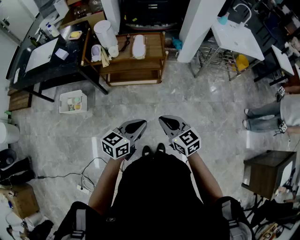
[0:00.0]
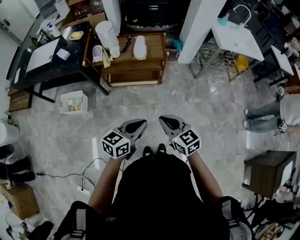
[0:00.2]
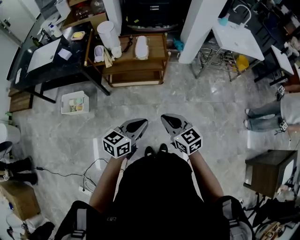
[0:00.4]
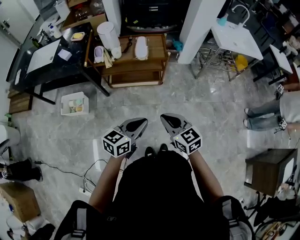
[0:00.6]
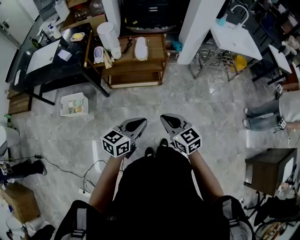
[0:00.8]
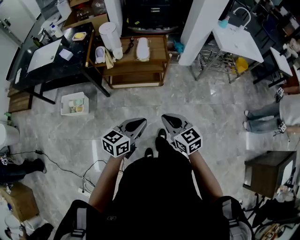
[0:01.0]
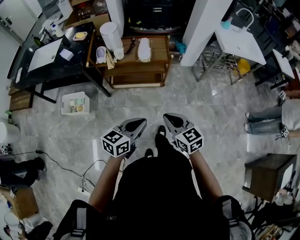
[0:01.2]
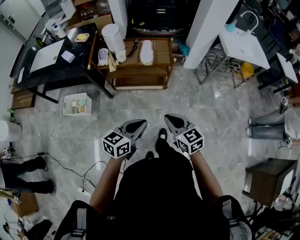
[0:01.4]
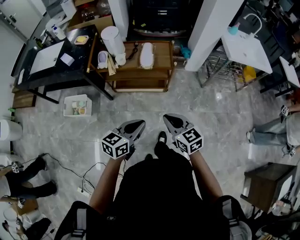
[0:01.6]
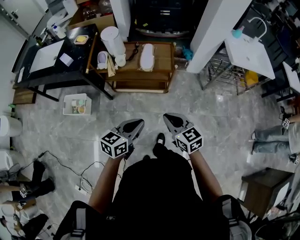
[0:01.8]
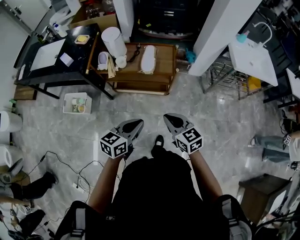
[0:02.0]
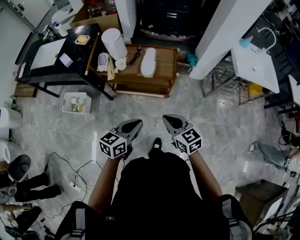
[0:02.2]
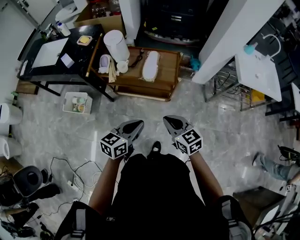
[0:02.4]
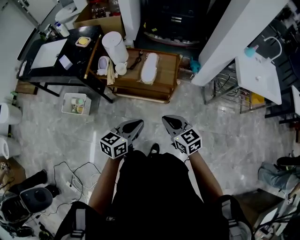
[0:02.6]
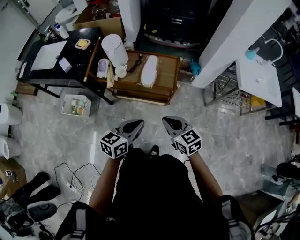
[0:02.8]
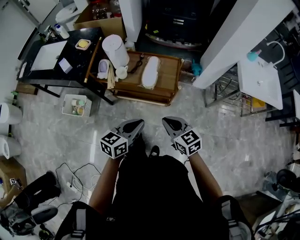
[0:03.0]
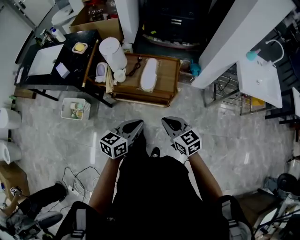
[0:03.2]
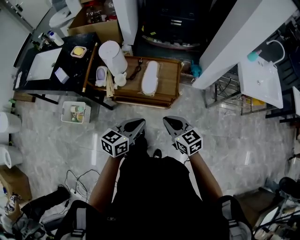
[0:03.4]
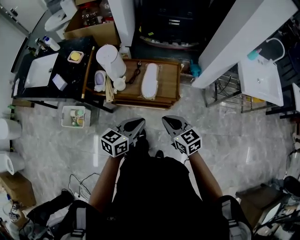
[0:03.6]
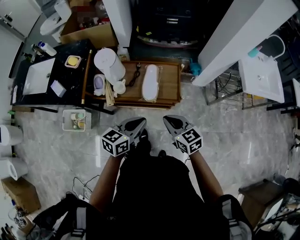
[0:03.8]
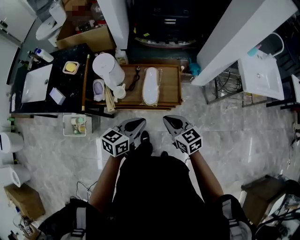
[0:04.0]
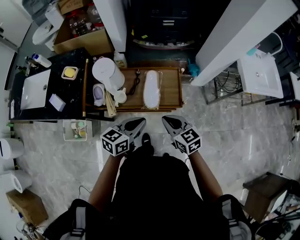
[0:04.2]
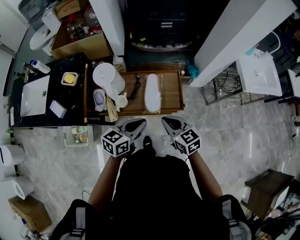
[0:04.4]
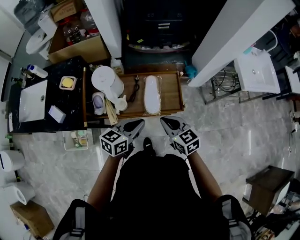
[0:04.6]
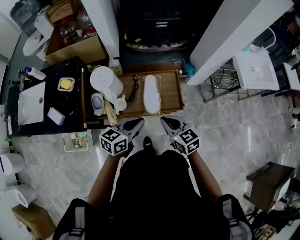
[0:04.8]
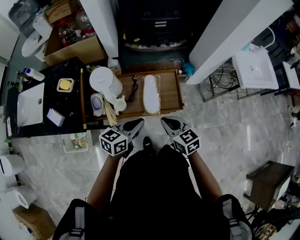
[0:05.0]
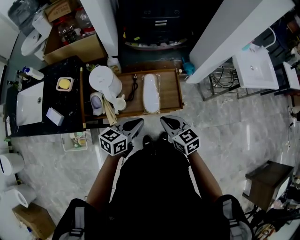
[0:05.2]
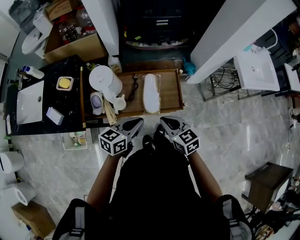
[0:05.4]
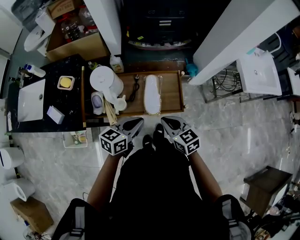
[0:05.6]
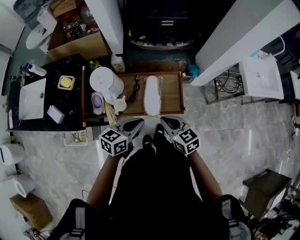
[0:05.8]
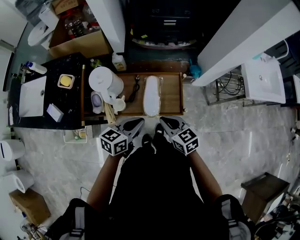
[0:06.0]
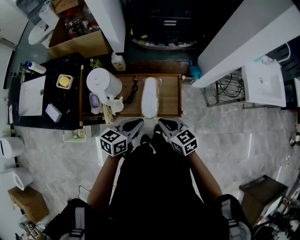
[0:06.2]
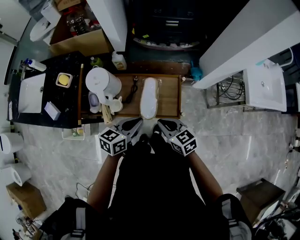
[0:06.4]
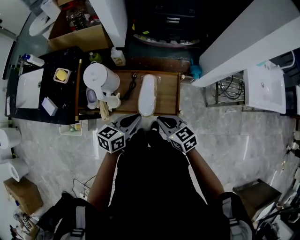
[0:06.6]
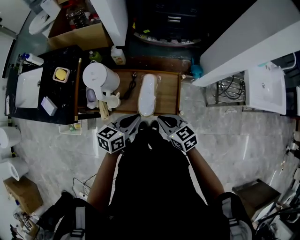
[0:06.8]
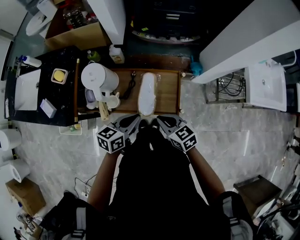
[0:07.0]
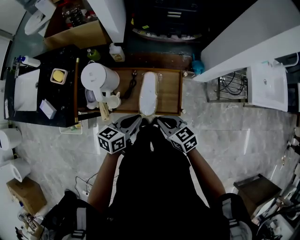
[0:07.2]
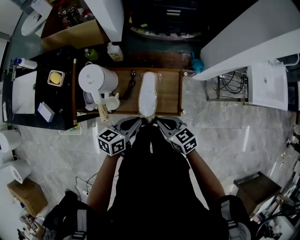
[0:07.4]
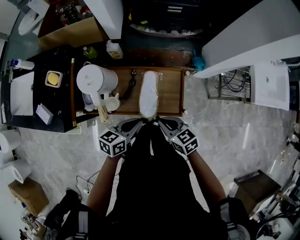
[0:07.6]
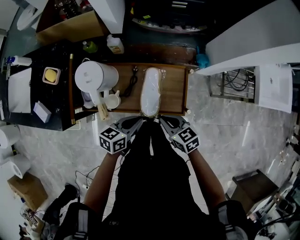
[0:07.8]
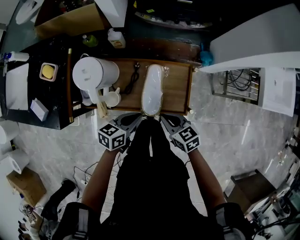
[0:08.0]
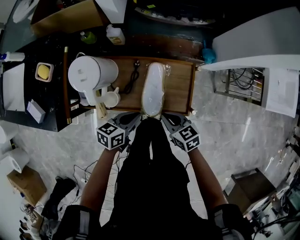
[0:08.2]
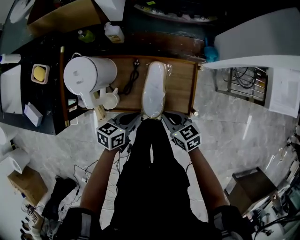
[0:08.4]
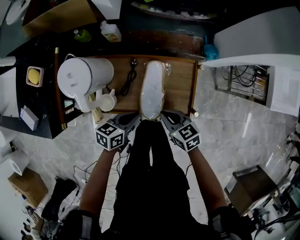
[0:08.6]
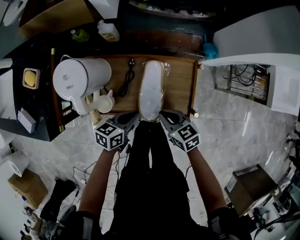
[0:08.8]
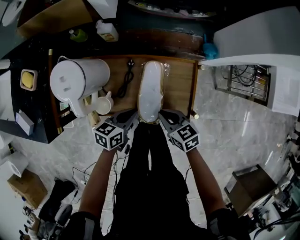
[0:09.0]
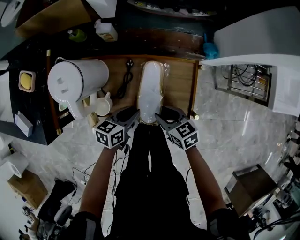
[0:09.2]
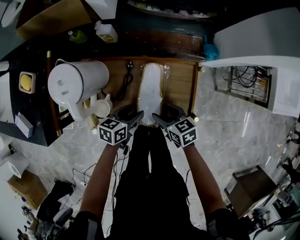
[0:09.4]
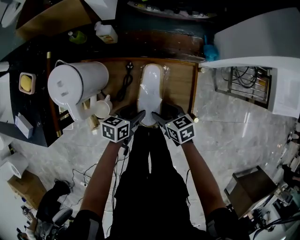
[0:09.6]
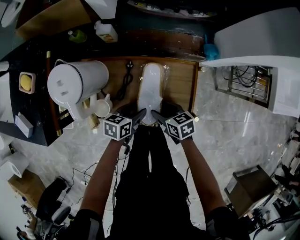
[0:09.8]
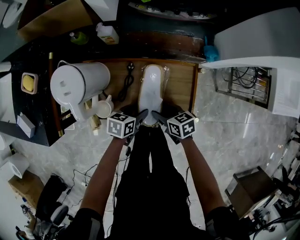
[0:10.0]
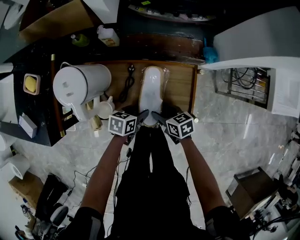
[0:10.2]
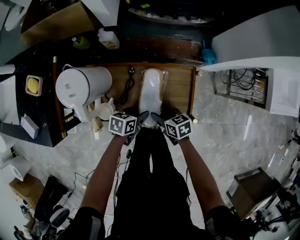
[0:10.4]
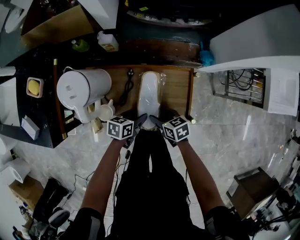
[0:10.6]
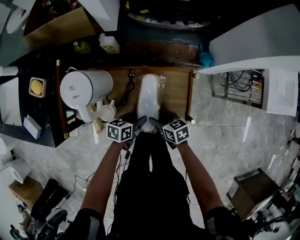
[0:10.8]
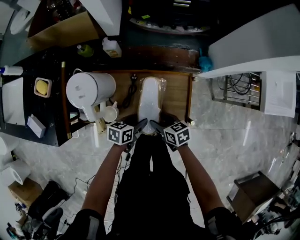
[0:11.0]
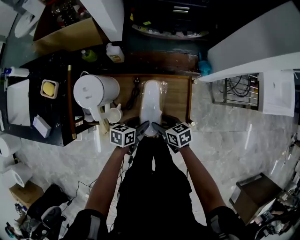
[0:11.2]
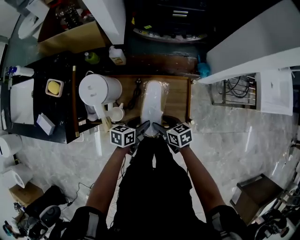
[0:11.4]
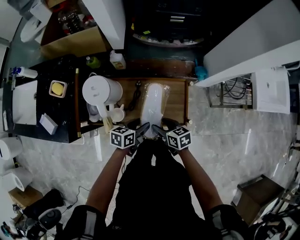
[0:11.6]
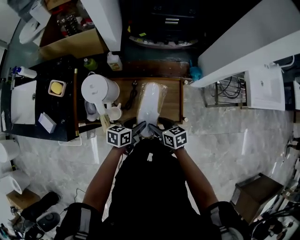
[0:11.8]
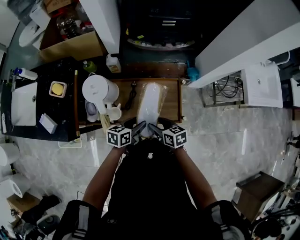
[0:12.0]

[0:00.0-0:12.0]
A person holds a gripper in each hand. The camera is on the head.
0:00.0 to 0:01.6: Both grippers move forward, roughly 10 cm.
0:01.6 to 0:03.0: Both grippers move forward, some 20 cm.
0:03.0 to 0:04.4: The left gripper goes roughly 20 cm forward. Meanwhile the right gripper is displaced forward and to the left by roughly 20 cm.
0:04.4 to 0:06.0: The right gripper changes place by approximately 5 cm; the left gripper shifts about 5 cm forward.
0:06.0 to 0:07.6: Both grippers move downward, roughly 5 cm.
0:07.6 to 0:09.0: The two grippers go roughly 15 cm downward.
0:09.0 to 0:10.4: Both grippers travel together downward, some 5 cm. The right gripper opens, while the left gripper opens.
0:10.4 to 0:12.0: The grippers both shift upward by about 15 cm.

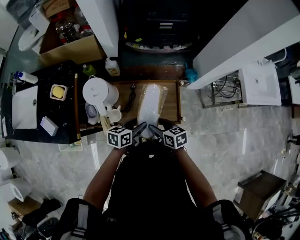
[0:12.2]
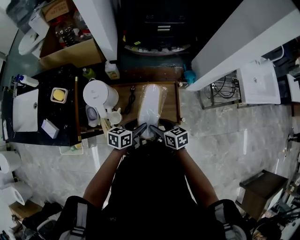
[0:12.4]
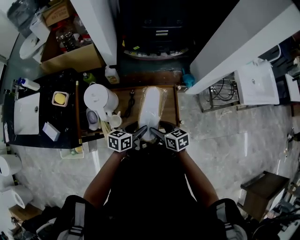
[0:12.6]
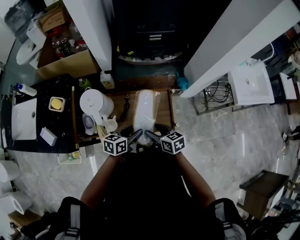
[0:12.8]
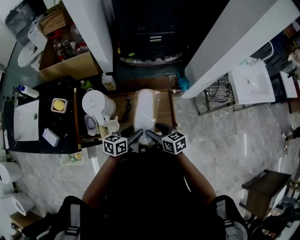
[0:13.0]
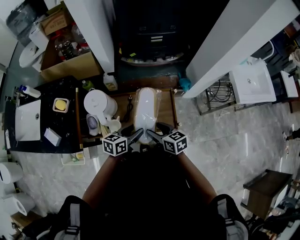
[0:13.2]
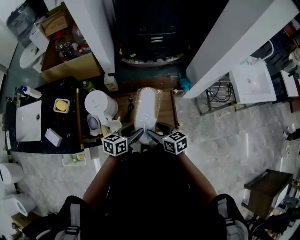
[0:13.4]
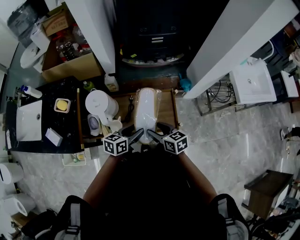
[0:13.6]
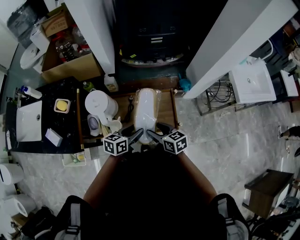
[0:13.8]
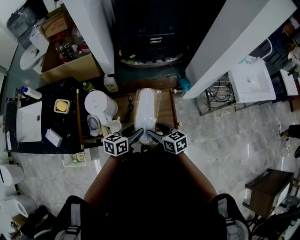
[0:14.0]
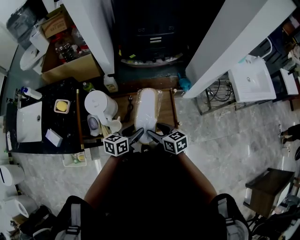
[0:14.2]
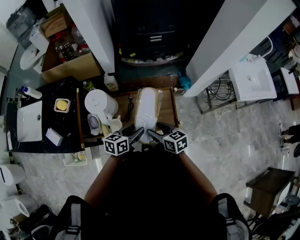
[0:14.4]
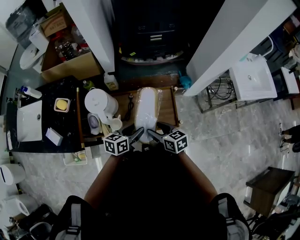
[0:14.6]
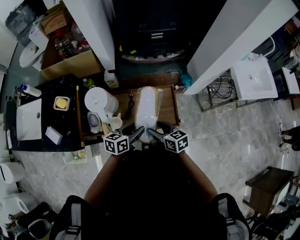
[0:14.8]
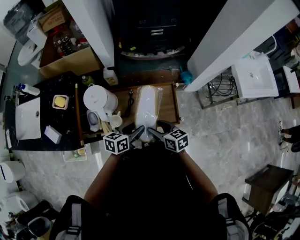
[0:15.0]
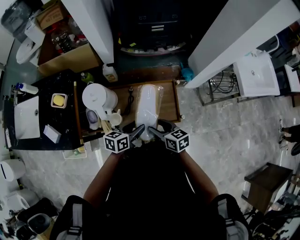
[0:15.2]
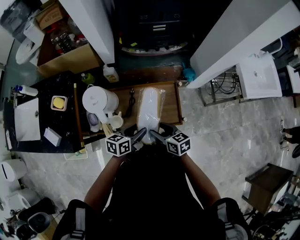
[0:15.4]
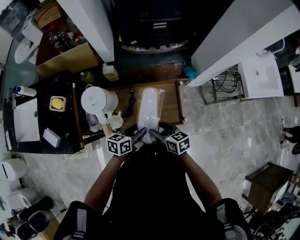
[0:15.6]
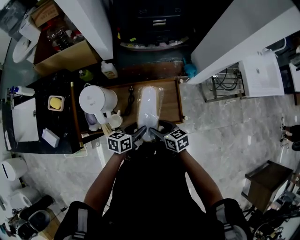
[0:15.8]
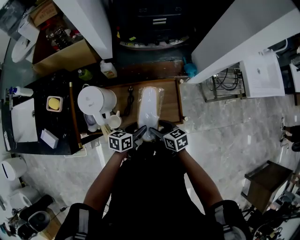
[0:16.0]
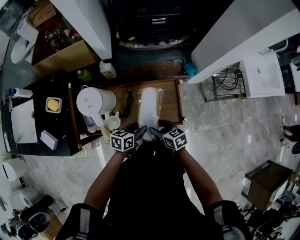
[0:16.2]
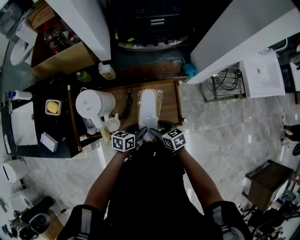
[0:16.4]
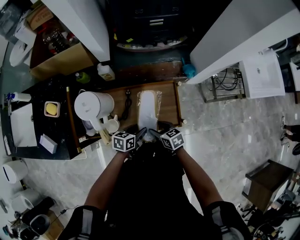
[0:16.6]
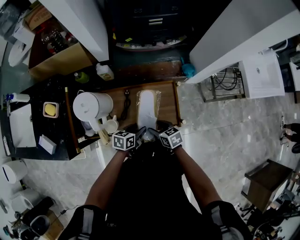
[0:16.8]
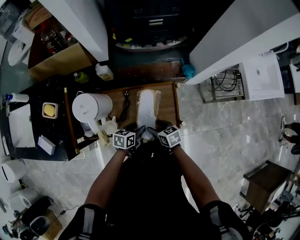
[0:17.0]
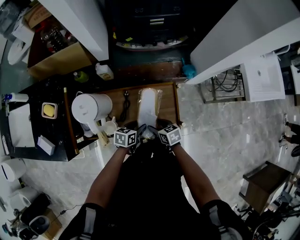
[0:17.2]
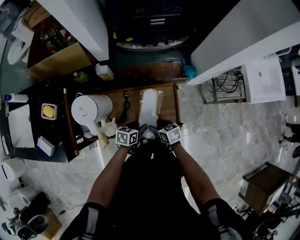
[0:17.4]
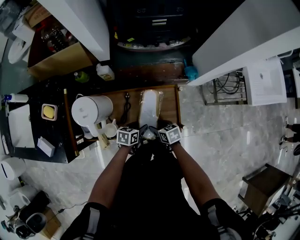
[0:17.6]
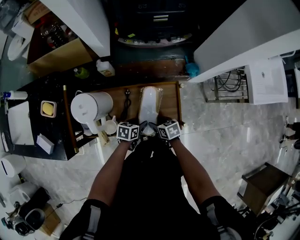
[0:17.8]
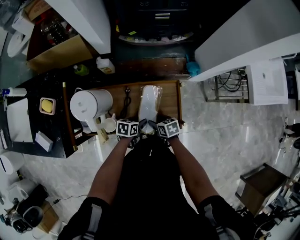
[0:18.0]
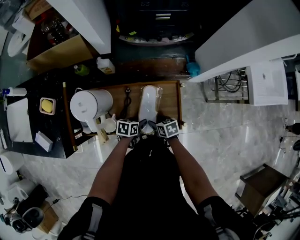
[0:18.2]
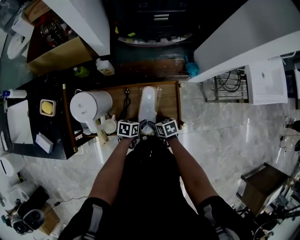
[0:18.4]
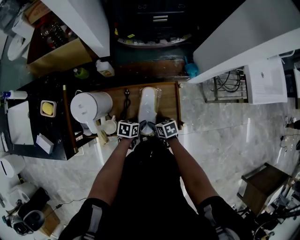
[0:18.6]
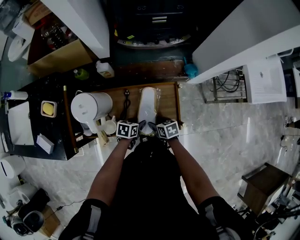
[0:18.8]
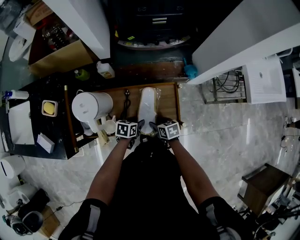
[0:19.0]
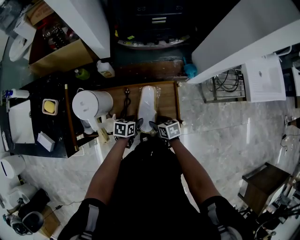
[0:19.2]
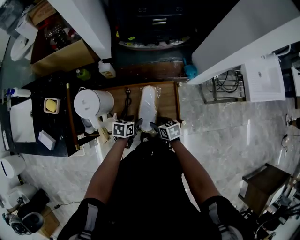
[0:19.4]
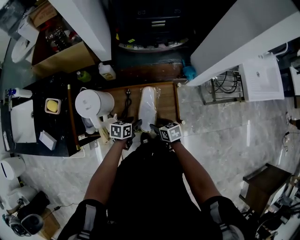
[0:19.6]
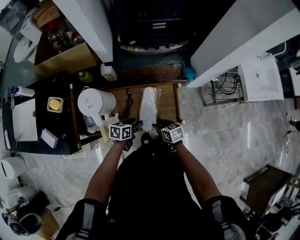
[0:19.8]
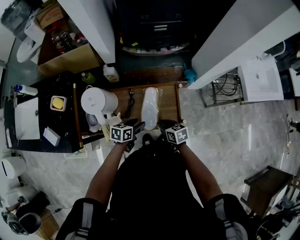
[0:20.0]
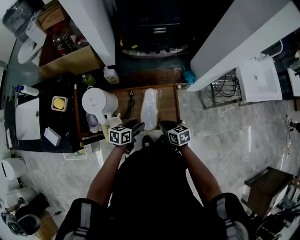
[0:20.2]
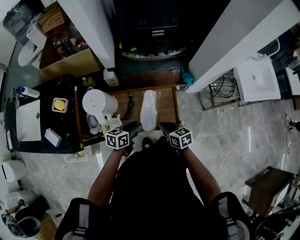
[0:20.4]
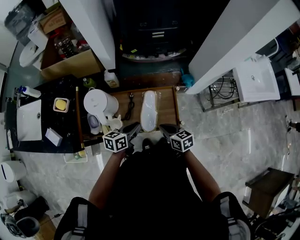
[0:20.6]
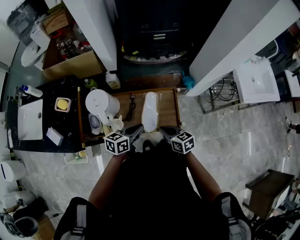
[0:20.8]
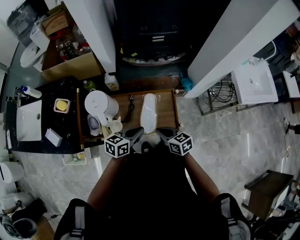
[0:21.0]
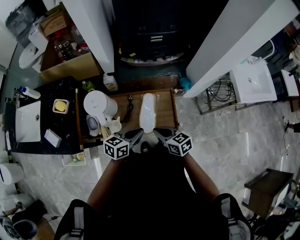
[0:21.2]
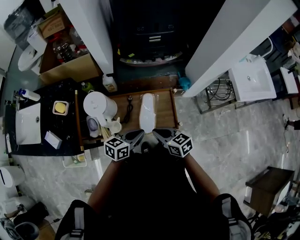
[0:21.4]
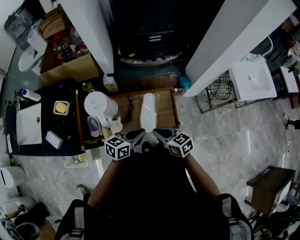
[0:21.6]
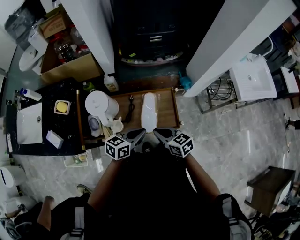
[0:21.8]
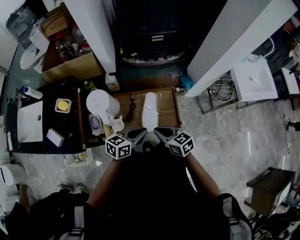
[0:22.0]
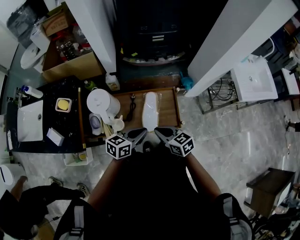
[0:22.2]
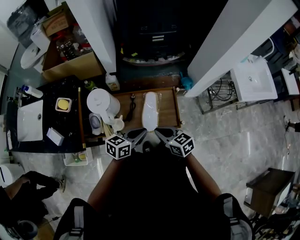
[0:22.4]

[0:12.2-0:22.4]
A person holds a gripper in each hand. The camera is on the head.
0:12.2 to 0:13.6: The two grippers go some 5 cm upward.
0:13.6 to 0:15.2: The grippers make only small movements.
0:15.2 to 0:16.6: The two grippers go some 10 cm downward.
0:16.6 to 0:18.0: Both grippers travel together downward, roughly 10 cm.
0:18.0 to 0:19.4: The grippers move only a little.
0:19.4 to 0:21.0: Both grippers travel together upward, roughly 20 cm. The right gripper swivels some 20 degrees, and closes up; the left gripper changes its angle by about 30 degrees, and closes up.
0:21.0 to 0:22.4: The grippers move only a little.

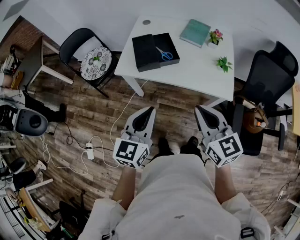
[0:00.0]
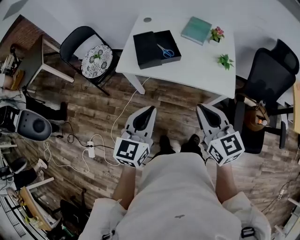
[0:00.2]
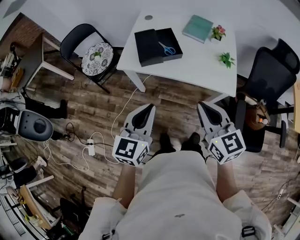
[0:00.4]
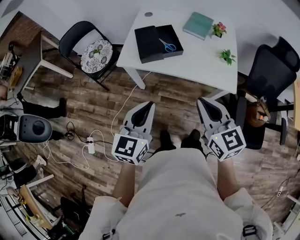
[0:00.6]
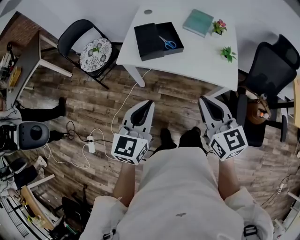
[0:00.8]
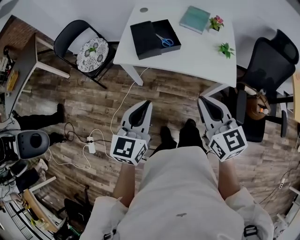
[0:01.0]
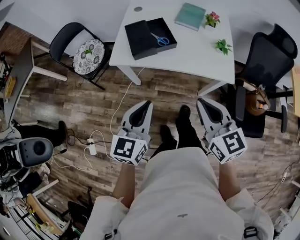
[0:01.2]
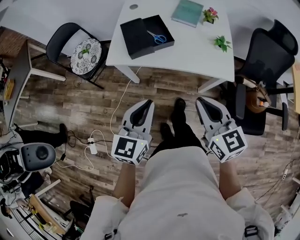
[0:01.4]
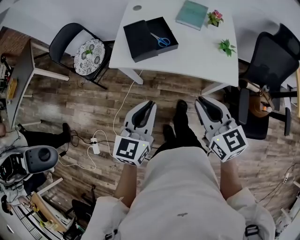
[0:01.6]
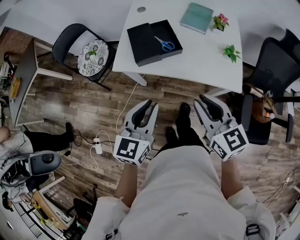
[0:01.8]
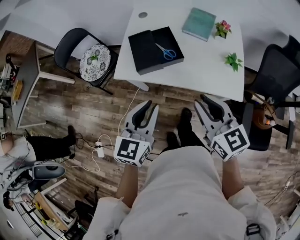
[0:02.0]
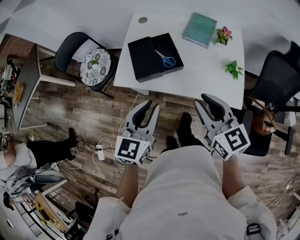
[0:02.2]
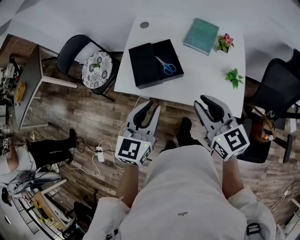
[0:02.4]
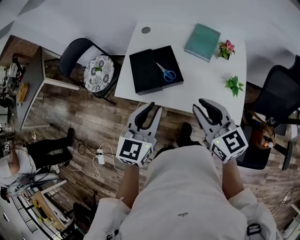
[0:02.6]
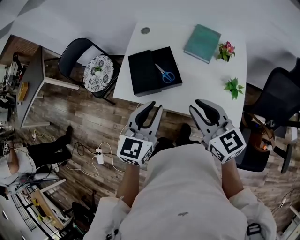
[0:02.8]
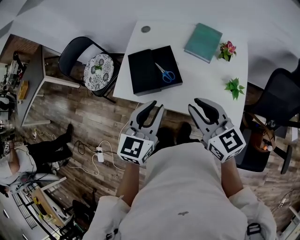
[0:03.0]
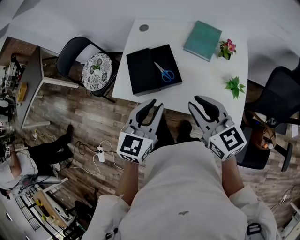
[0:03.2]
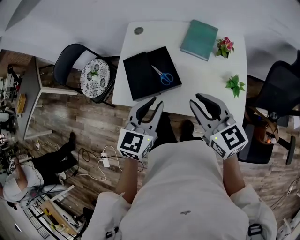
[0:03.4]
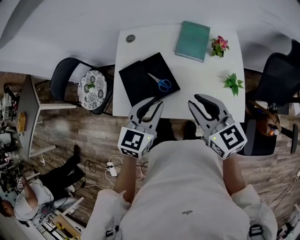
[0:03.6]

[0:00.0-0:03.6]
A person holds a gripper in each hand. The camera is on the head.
0:00.0 to 0:01.8: Both grippers travel together forward, some 5 cm.
0:01.8 to 0:03.6: Both grippers move forward, approximately 20 cm.
